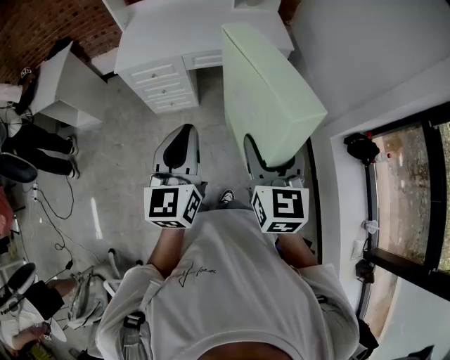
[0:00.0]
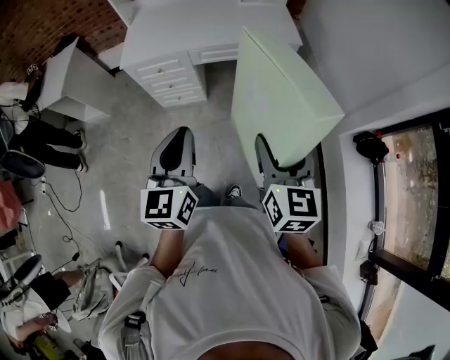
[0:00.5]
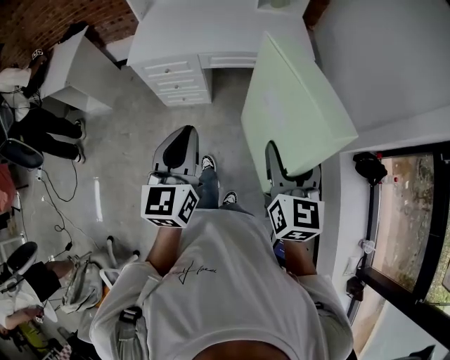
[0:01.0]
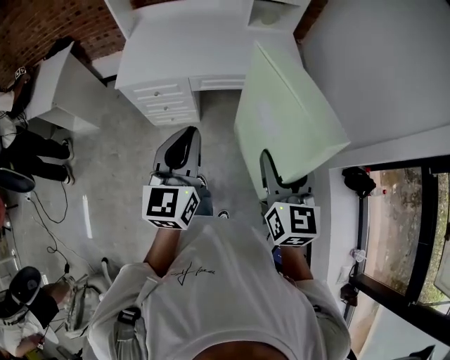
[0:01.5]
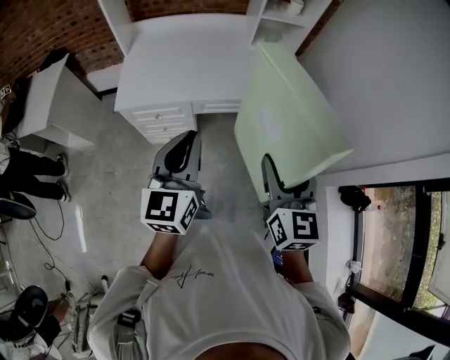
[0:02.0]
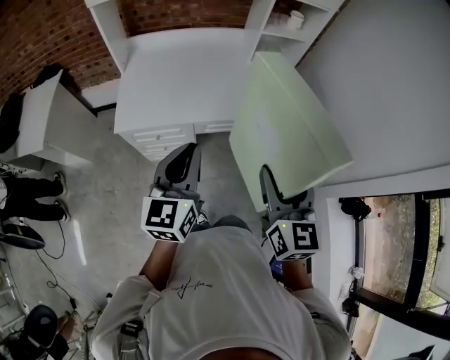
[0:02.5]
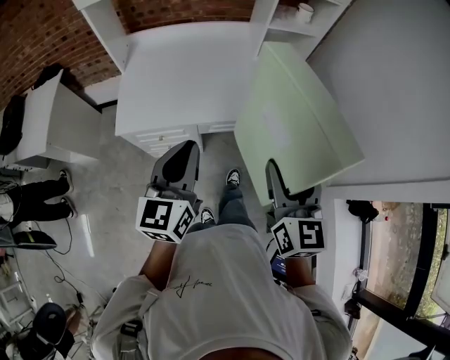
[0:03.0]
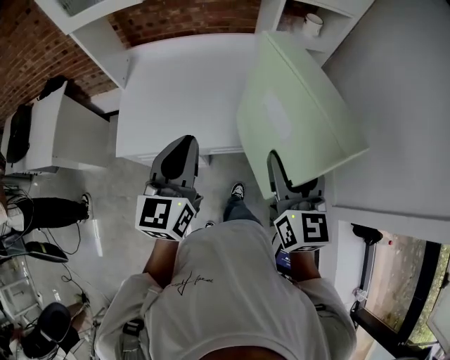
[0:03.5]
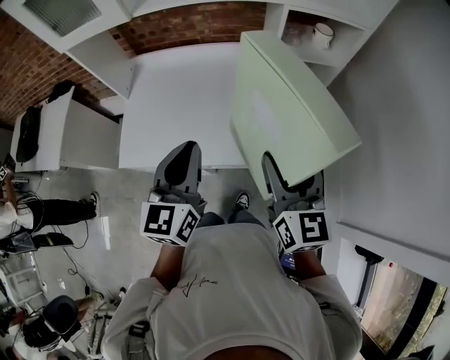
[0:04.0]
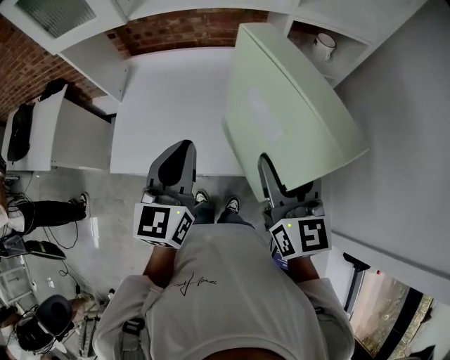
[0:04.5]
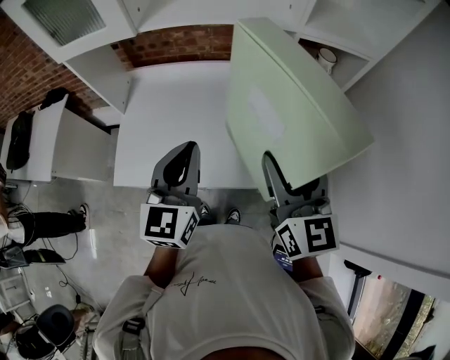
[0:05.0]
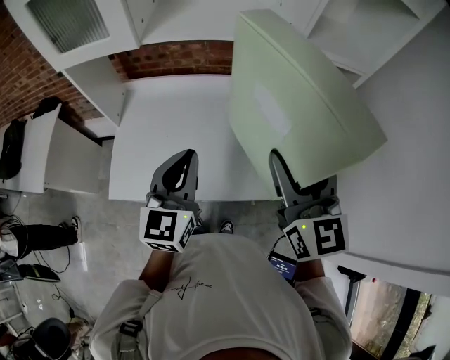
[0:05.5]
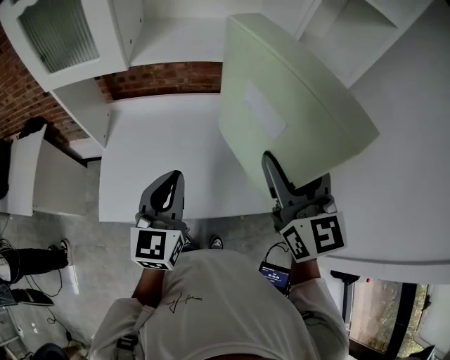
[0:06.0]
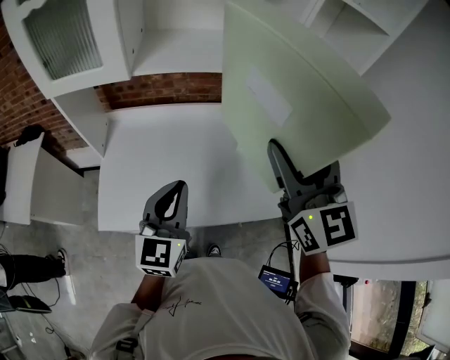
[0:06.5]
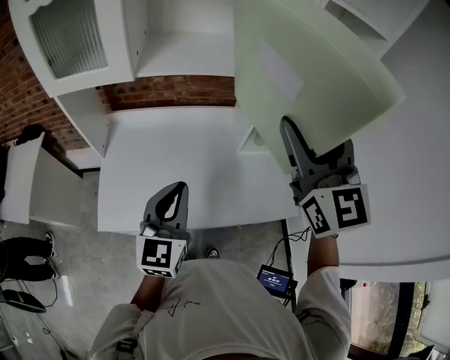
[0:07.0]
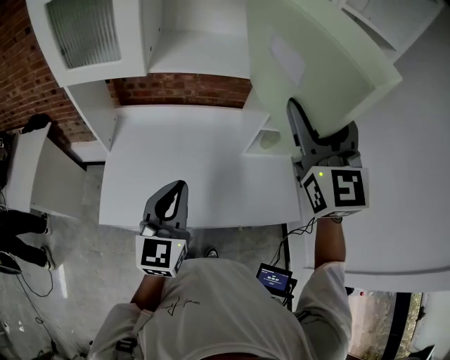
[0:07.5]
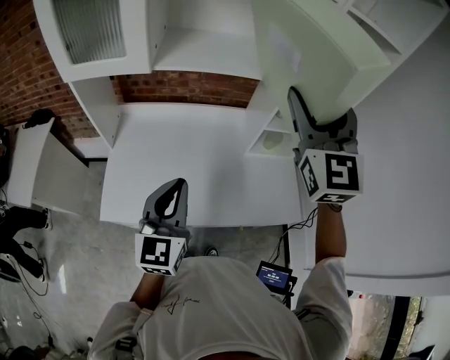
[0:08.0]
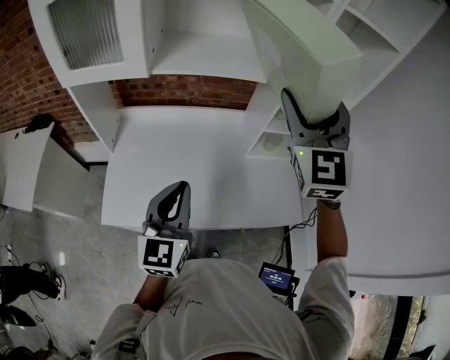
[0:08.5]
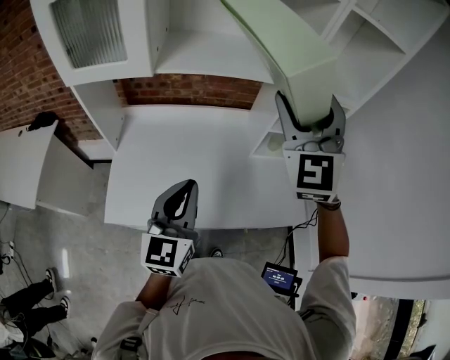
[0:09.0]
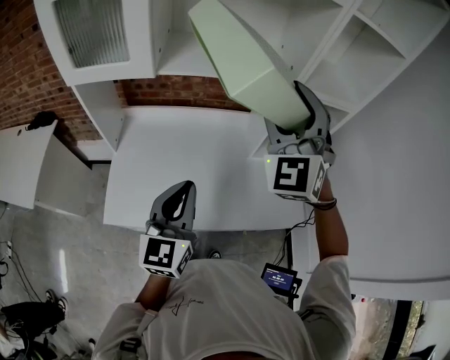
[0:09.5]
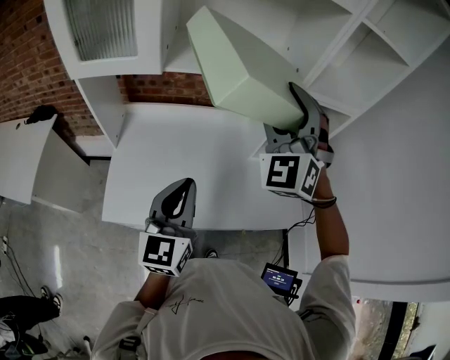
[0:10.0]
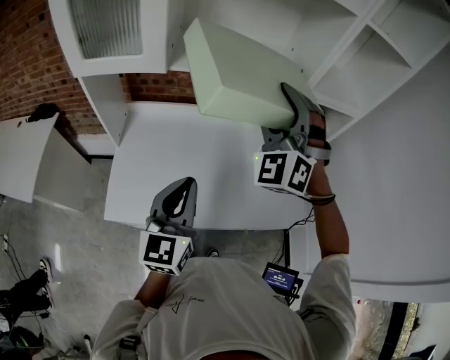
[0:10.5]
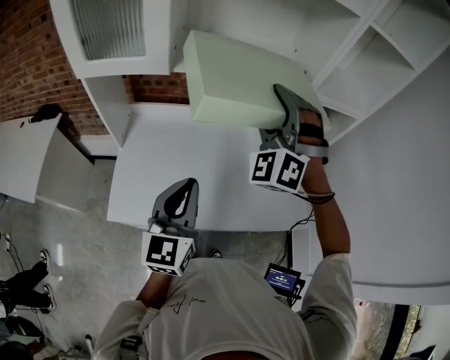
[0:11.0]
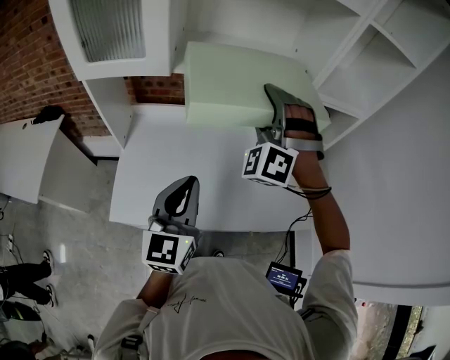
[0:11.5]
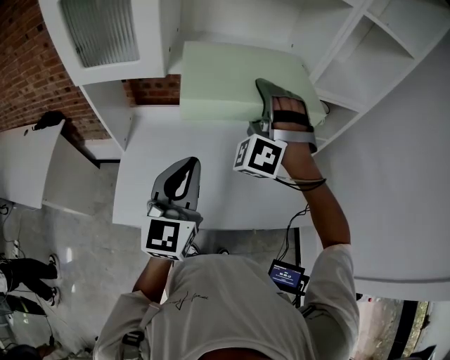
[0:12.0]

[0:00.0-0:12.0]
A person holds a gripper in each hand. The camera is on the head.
0:00.0 to 0:02.0: Both grippers travel together forward, about 25 cm.
0:02.0 to 0:04.0: The grippers both shift forward by about 30 cm.
0:04.0 to 0:06.0: The left gripper goes roughly 10 cm forward and to the left. The right gripper travels upward and forward by approximately 15 cm.
0:06.0 to 0:08.0: The right gripper shifts approximately 15 cm upward and forward, and changes its angle by about 30 degrees.
0:08.0 to 0:10.0: The right gripper moves to the left and downward, roughly 10 cm, and turns by about 30 degrees.
0:10.0 to 0:12.0: The right gripper is displaced downward and forward by about 10 cm, and turns by about 30 degrees. The left gripper moves about 5 cm.

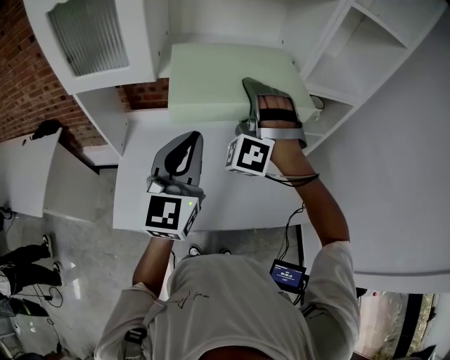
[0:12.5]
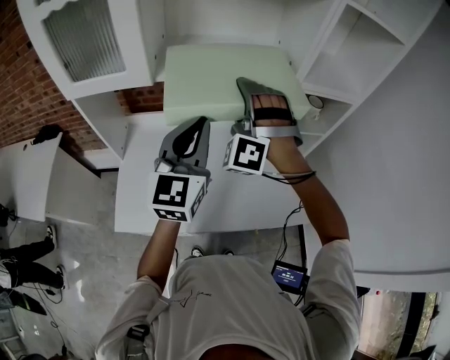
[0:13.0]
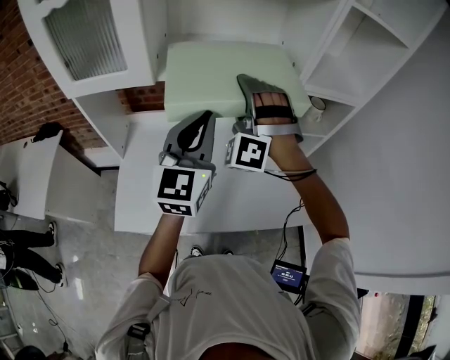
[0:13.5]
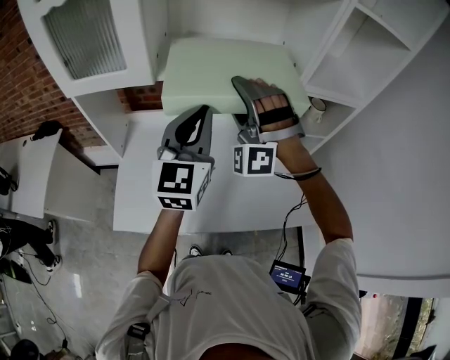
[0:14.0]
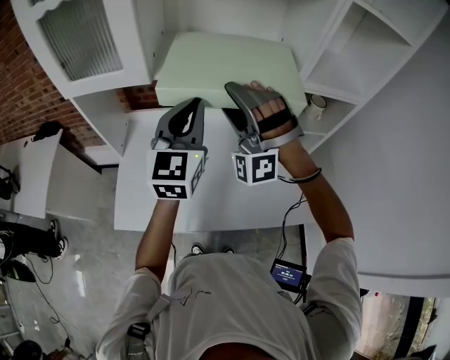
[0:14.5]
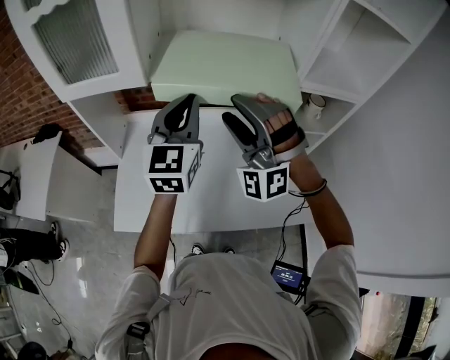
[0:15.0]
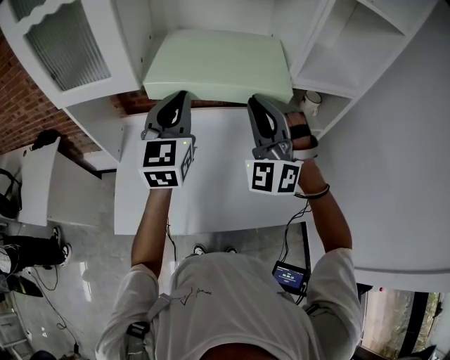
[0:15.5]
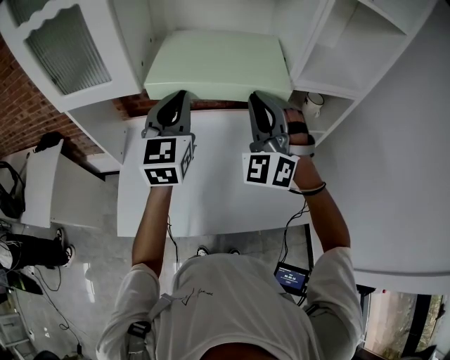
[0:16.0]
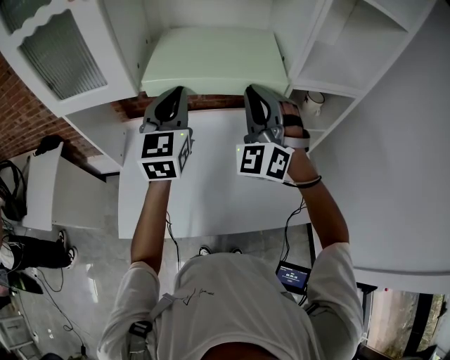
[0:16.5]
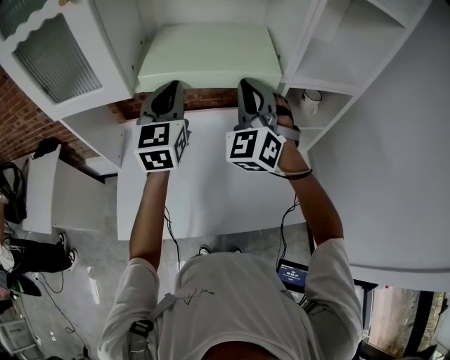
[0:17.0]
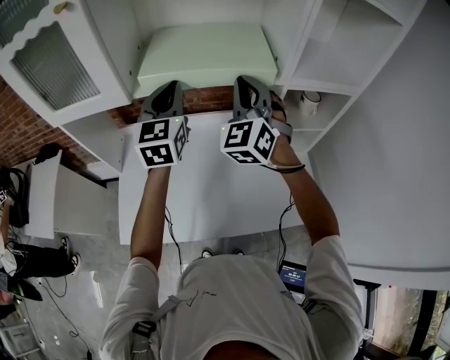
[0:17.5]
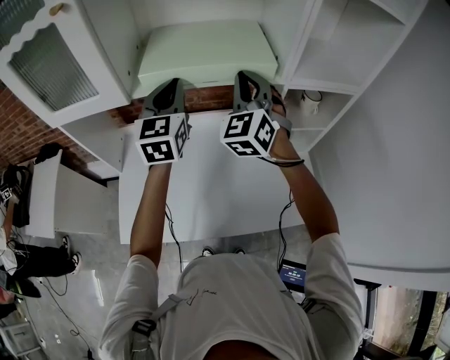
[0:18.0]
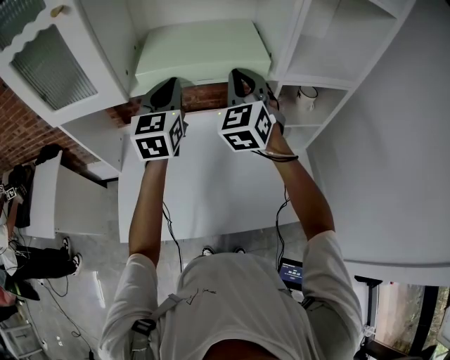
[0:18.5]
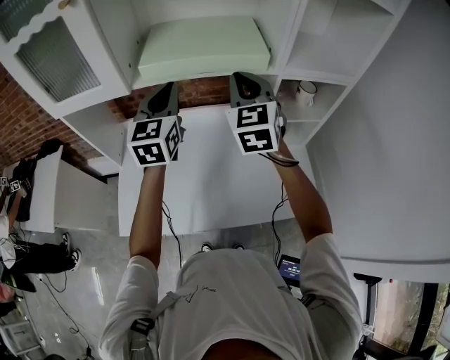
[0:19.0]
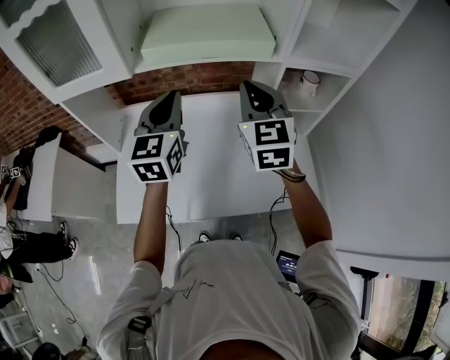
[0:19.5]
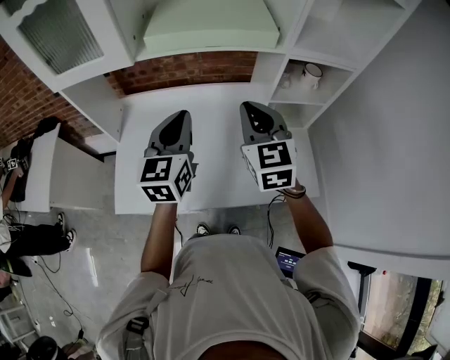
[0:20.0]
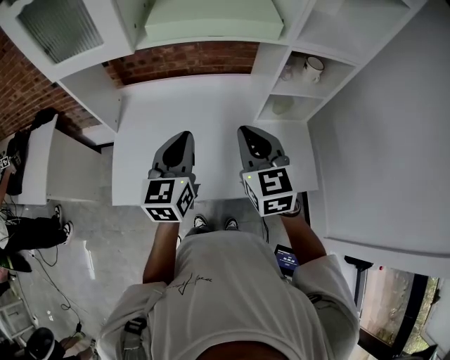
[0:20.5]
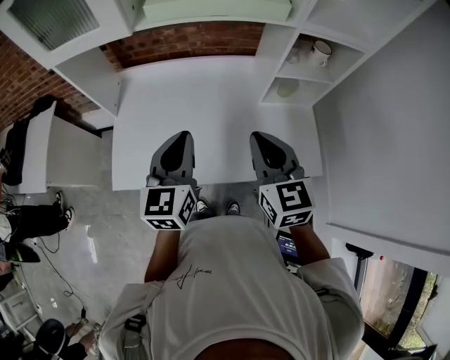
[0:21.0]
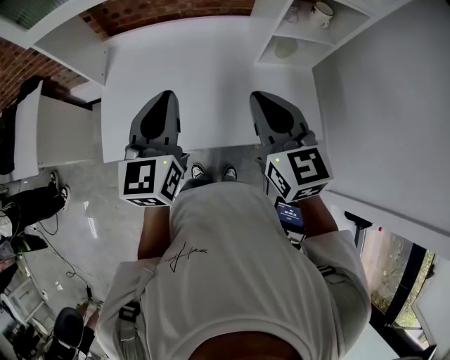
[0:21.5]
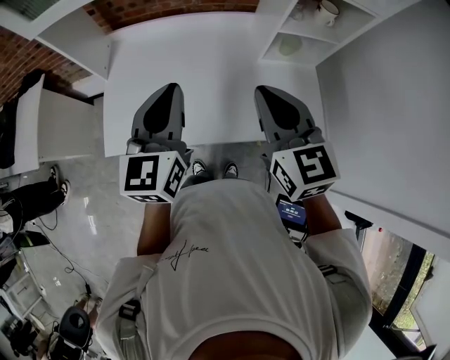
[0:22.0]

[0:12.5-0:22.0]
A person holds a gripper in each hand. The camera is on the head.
0:12.5 to 0:14.5: The right gripper rotates roughly 30 degrees. Meanwhile the left gripper travels forward by approximately 10 cm.
0:14.5 to 0:16.5: The left gripper is displaced forward by roughly 5 cm; the right gripper travels to the right by approximately 10 cm, swivels about 30 degrees, and closes.
0:16.5 to 0:18.0: The grippers both shift forward by about 5 cm. The right gripper changes its angle by about 20 degrees.
0:18.0 to 0:20.0: The two grippers go approximately 15 cm backward and downward. The right gripper turns by approximately 30 degrees.
0:20.0 to 0:22.0: Both grippers travel together backward, approximately 10 cm.

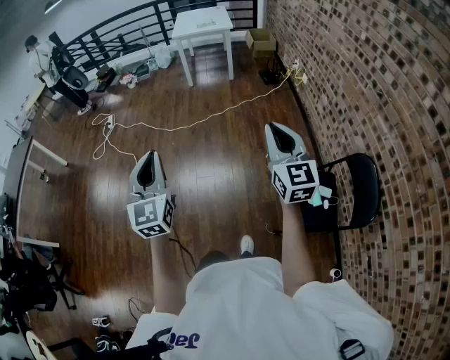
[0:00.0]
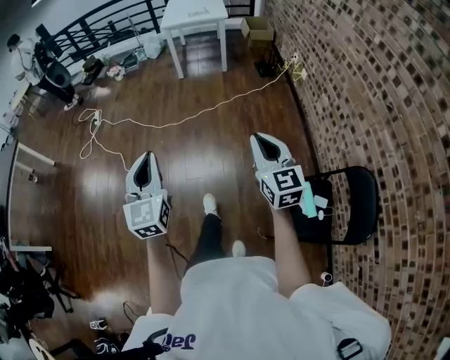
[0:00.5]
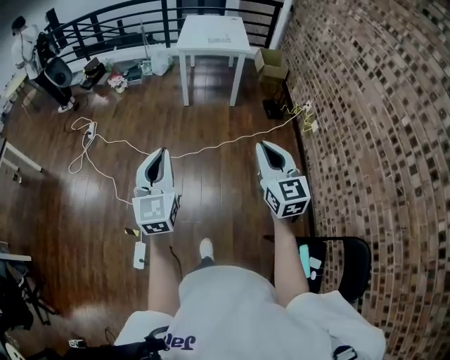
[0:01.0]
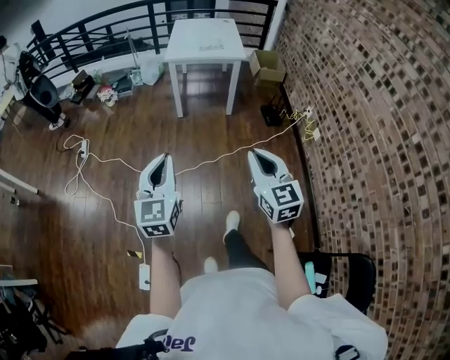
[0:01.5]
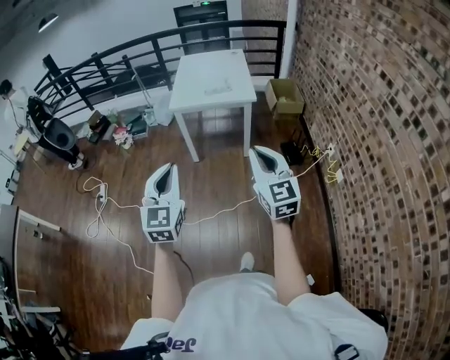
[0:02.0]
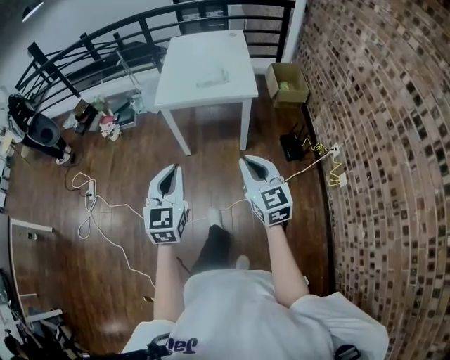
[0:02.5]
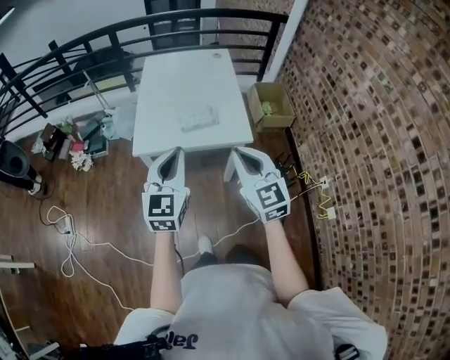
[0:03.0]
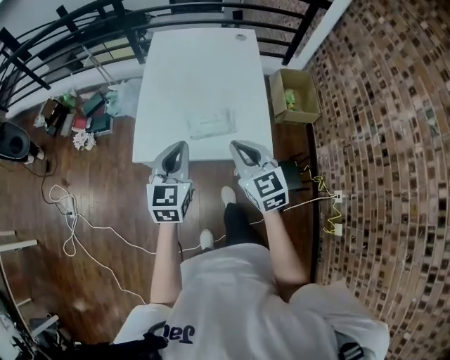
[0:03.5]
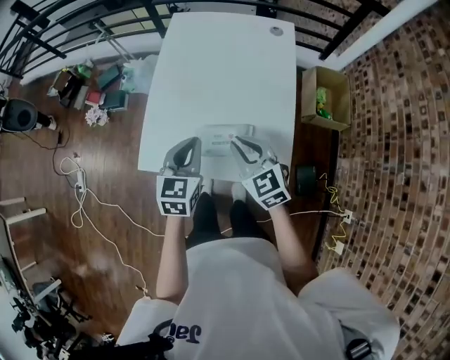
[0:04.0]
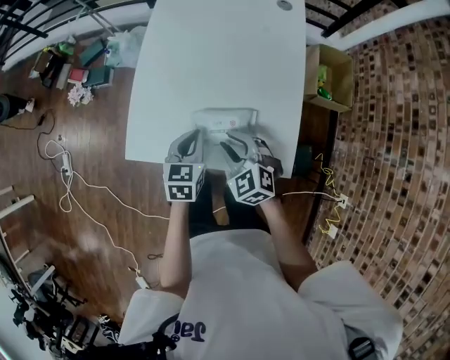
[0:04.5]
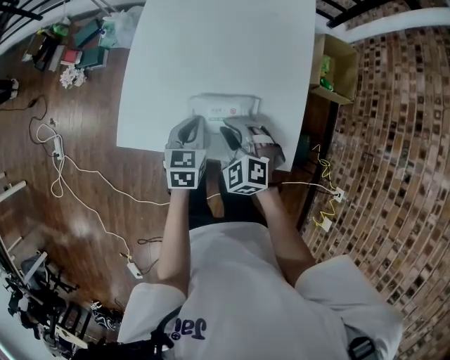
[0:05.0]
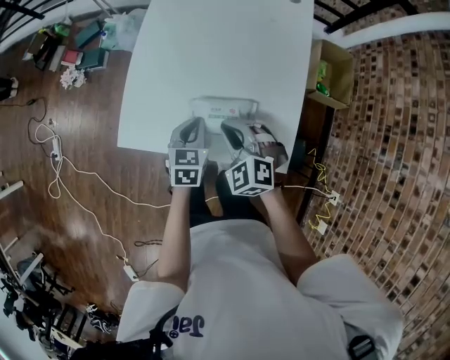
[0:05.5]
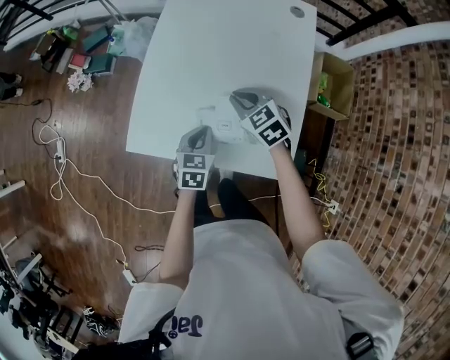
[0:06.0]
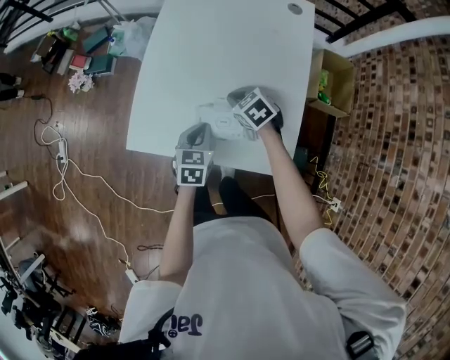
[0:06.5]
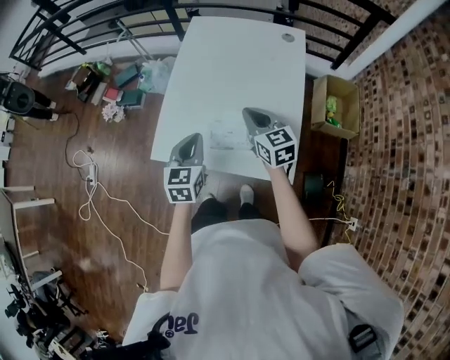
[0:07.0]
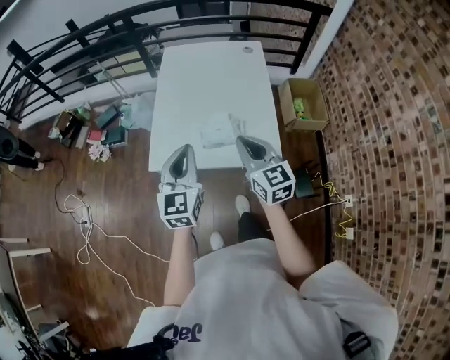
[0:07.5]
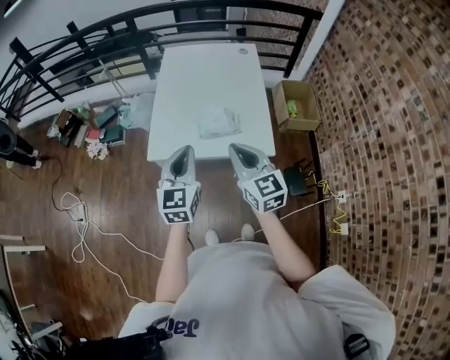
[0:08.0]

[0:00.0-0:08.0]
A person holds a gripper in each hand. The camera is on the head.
0:00.0 to 0:02.0: The two grippers travel together, forward, some 90 cm.
0:02.0 to 0:04.0: The pair of grippers is taken forward, roughly 80 cm. The left gripper rotates approximately 30 degrees, while the right gripper swivels roughly 30 degrees.
0:04.0 to 0:06.0: The right gripper goes roughly 15 cm forward and downward, and turns by approximately 20 degrees, while the left gripper is displaced downward by approximately 15 cm.
0:06.0 to 0:08.0: The right gripper shifts roughly 40 cm backward and upward, and angles its fingers upward, by some 30 degrees; the left gripper goes roughly 35 cm upward and backward, and tilts its fingers some 30 degrees upward.
